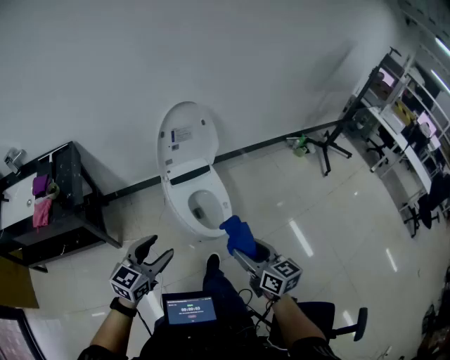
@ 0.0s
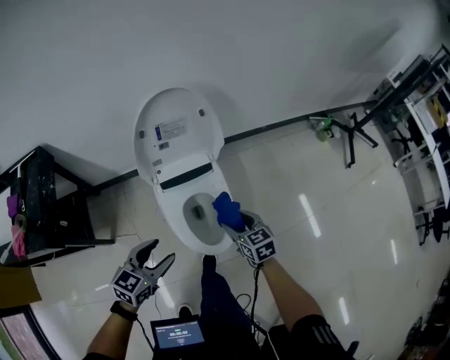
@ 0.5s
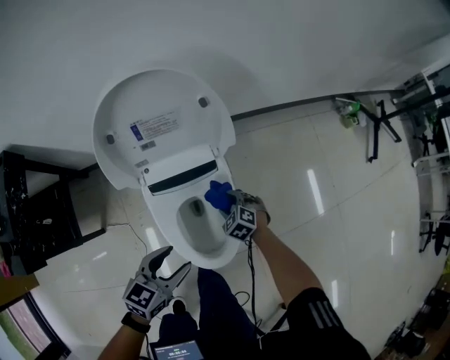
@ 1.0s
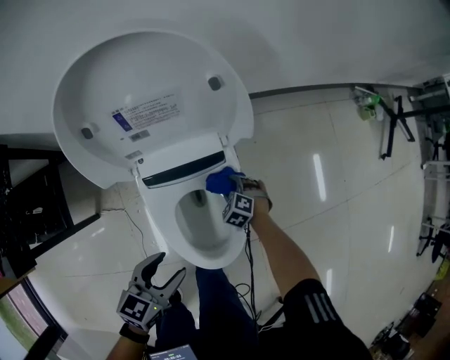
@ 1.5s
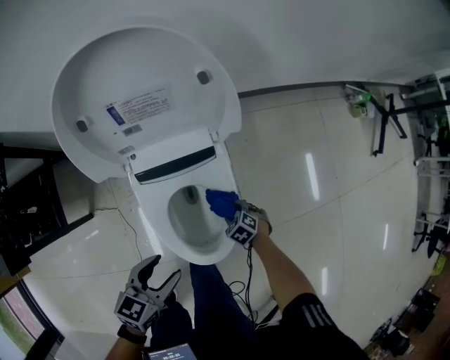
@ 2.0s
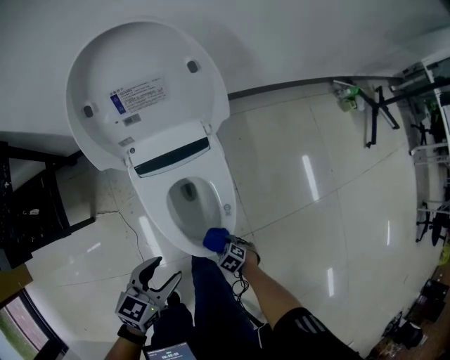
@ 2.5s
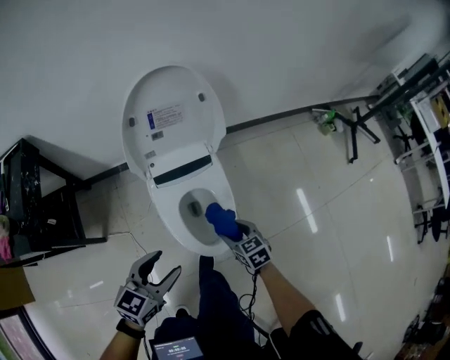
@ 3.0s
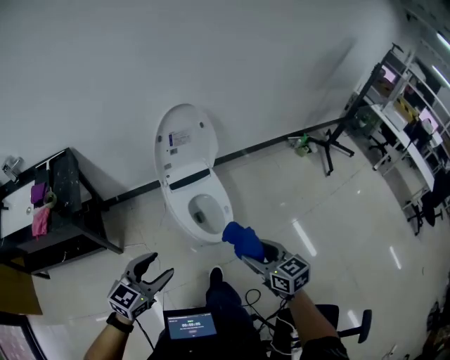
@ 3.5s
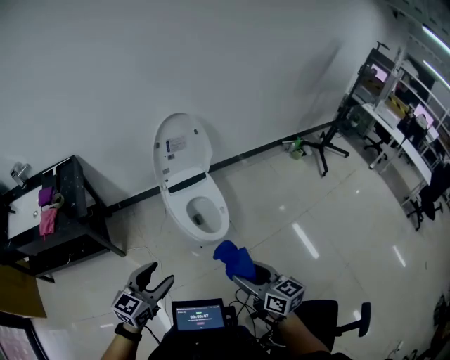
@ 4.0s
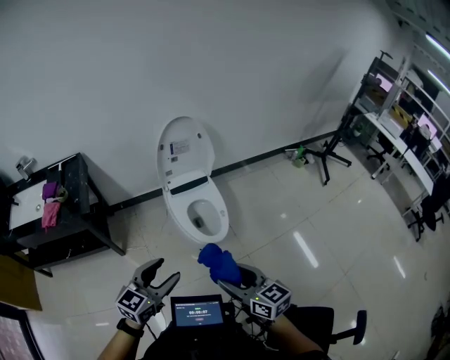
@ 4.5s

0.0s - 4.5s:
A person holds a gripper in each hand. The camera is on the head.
0.0s - 2.0s: The left gripper shifts by about 50 cm, and turns by approximately 30 degrees. Meanwhile the right gripper moves downward, roughly 60 cm, and angles its fingers downward, by approximately 60 degrees.
2.0s - 4.5s: The two grippers travel together, some 50 cm. The left gripper changes its angle by about 40 degrees. The right gripper is displaced upward by about 70 cm, and angles its fingers upward, by approximately 60 degrees.

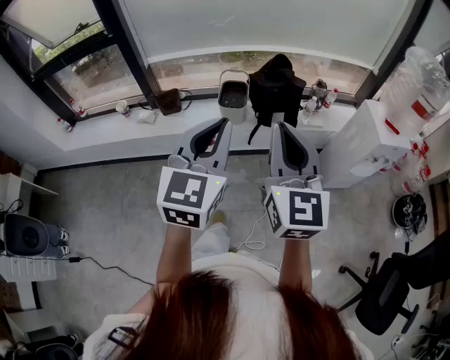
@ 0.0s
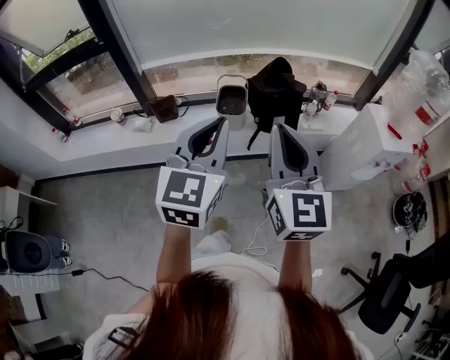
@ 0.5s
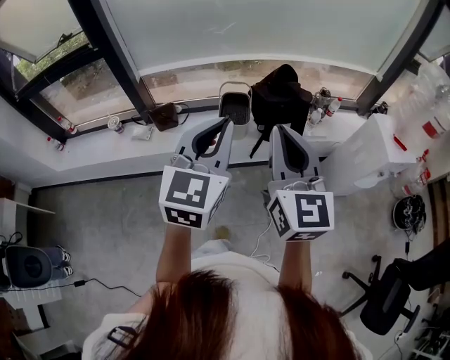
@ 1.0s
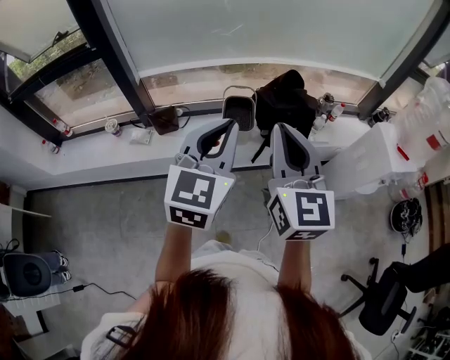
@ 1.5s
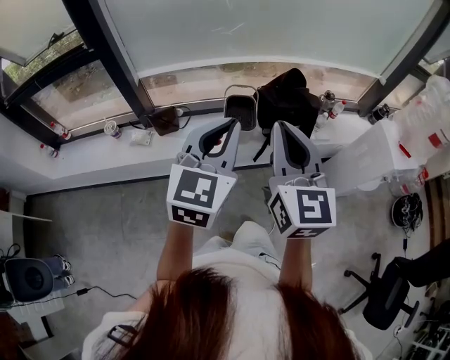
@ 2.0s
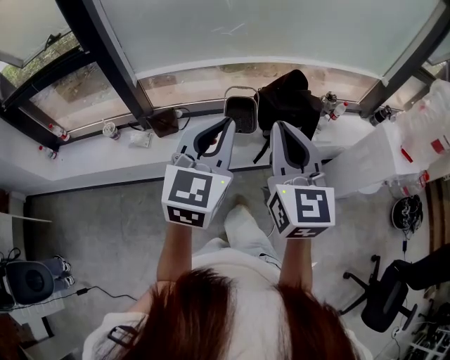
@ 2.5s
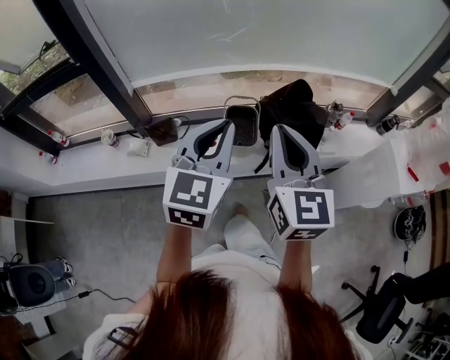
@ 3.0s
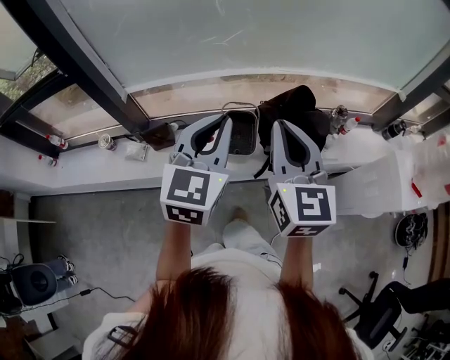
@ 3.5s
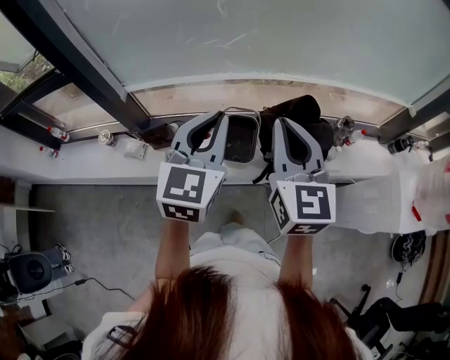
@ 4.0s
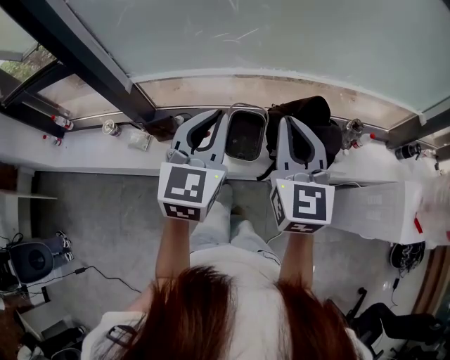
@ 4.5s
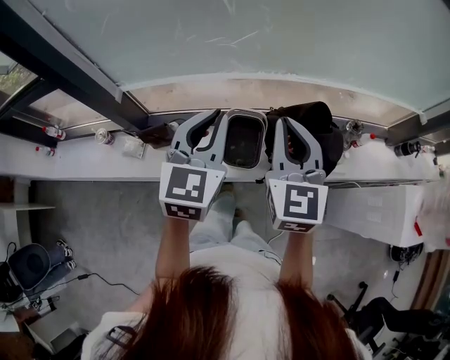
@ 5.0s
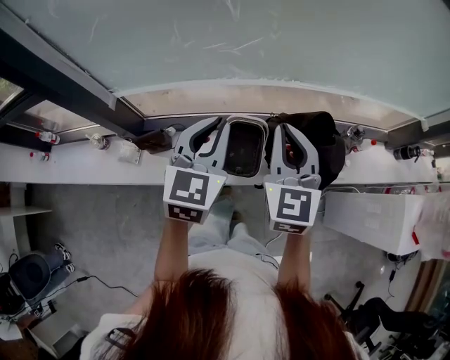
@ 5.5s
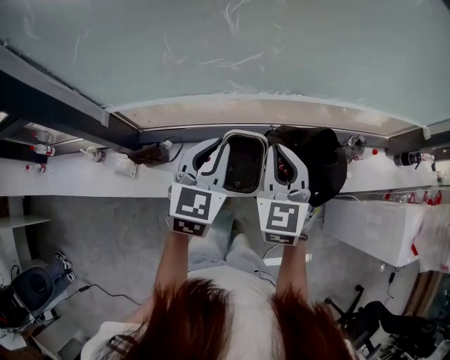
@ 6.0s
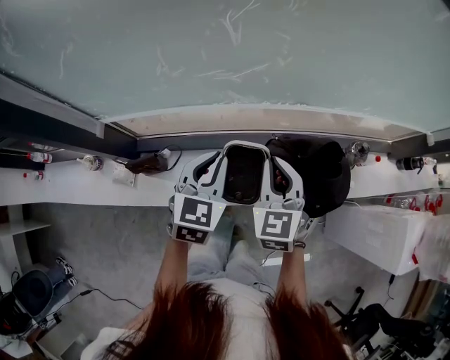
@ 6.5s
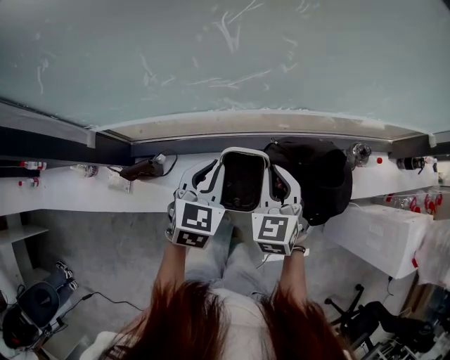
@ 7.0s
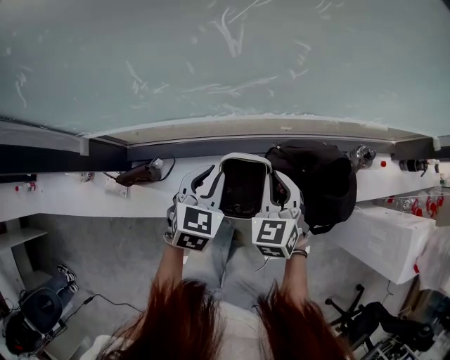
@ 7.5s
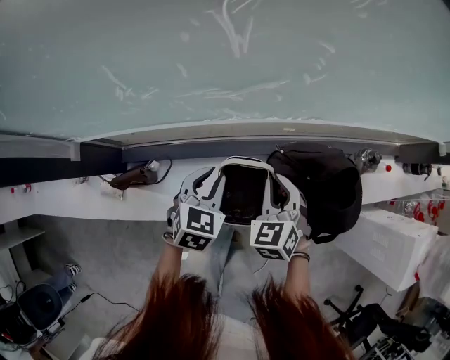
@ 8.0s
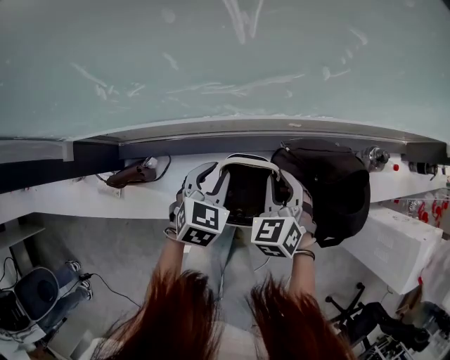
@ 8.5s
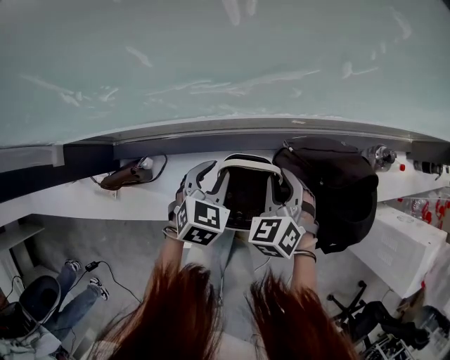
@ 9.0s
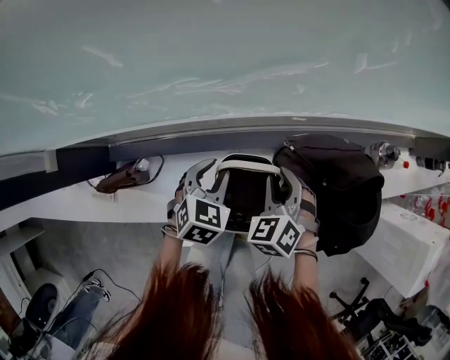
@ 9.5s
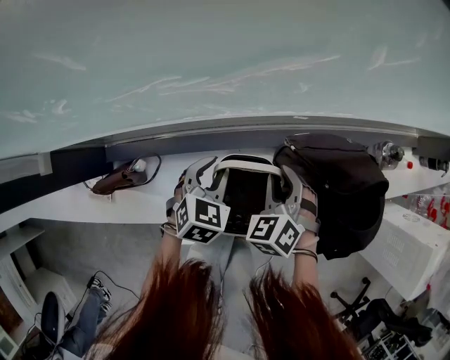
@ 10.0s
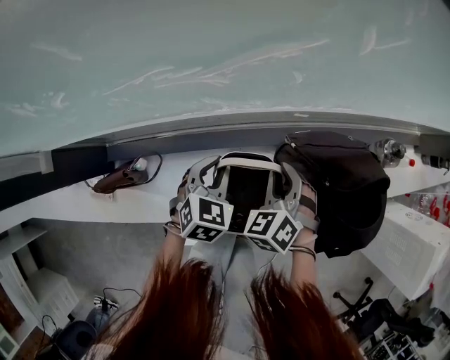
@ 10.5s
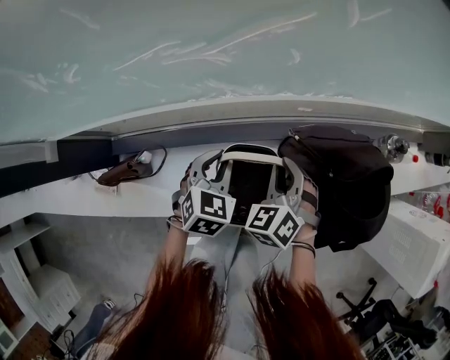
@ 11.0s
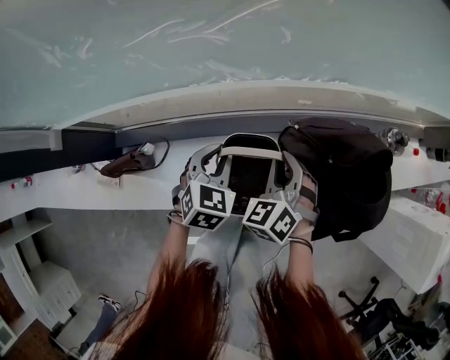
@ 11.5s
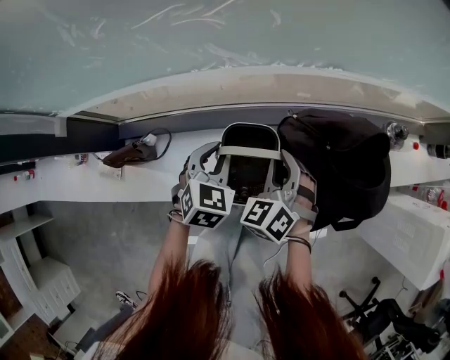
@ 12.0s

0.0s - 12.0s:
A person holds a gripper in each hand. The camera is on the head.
0.0s - 2.0s: The grippers both shift forward and to the left by approximately 25 cm.
2.0s - 4.0s: Both grippers move forward, about 25 cm.
4.0s - 6.0s: The grippers both shift forward and downward by roughly 20 cm. The right gripper turns by some 20 degrees.
6.0s - 8.0s: Both grippers travel together downward, roughly 20 cm. The right gripper swivels some 30 degrees.
8.0s - 10.0s: The two grippers go about 10 cm downward. The right gripper opens up.
10.0s - 12.0s: The two grippers go approximately 5 cm backward.

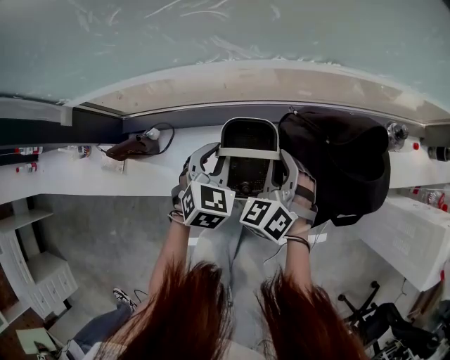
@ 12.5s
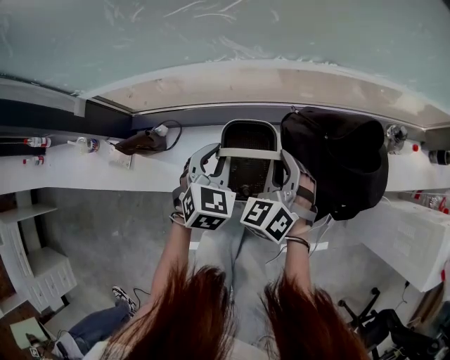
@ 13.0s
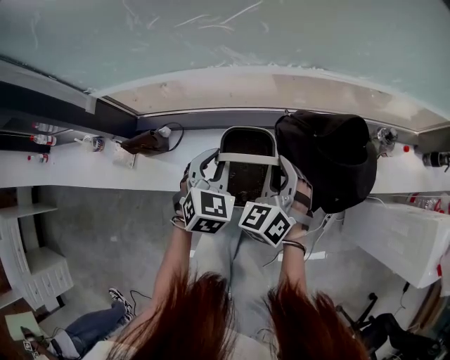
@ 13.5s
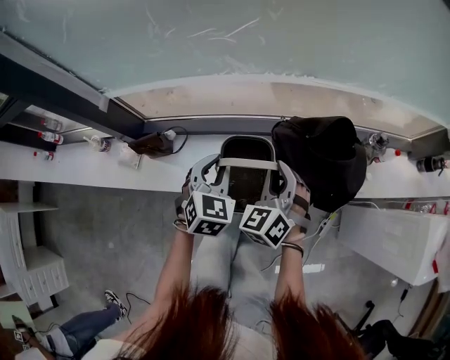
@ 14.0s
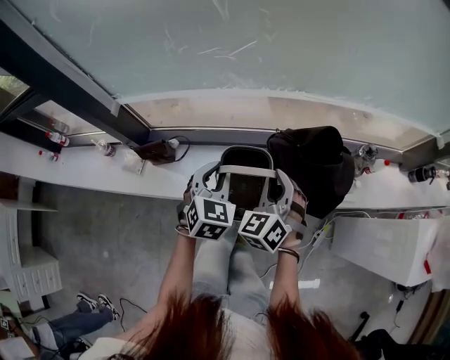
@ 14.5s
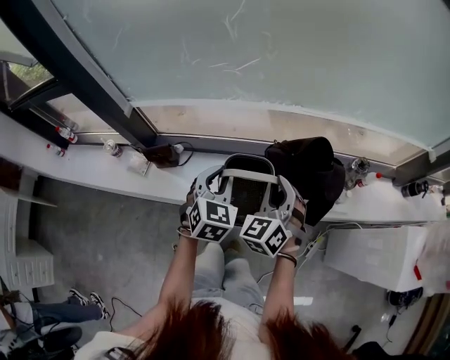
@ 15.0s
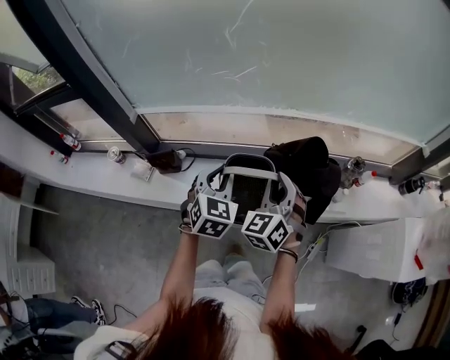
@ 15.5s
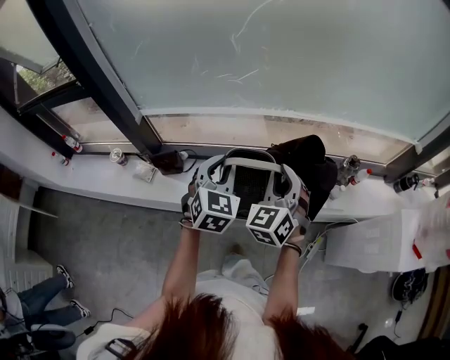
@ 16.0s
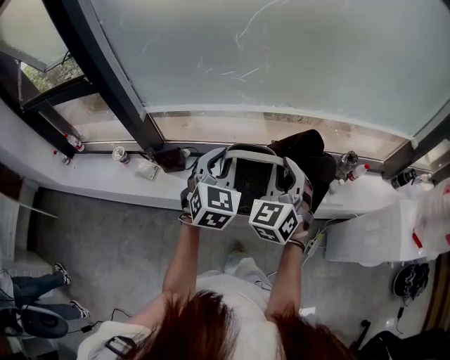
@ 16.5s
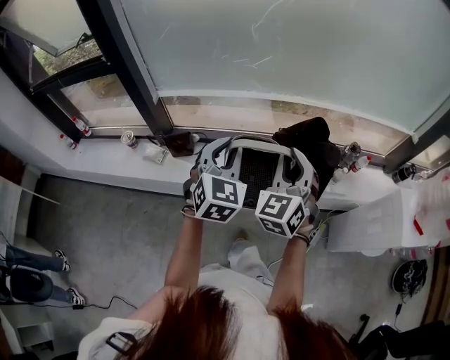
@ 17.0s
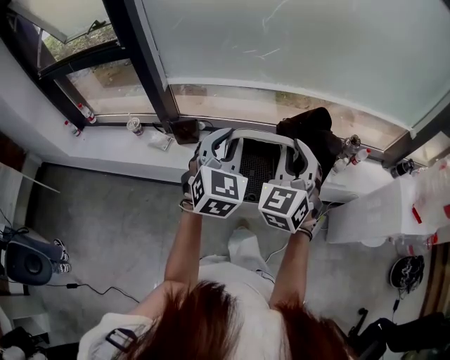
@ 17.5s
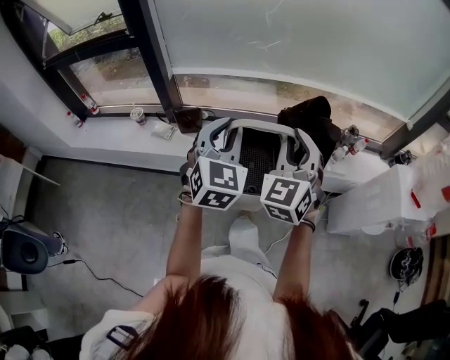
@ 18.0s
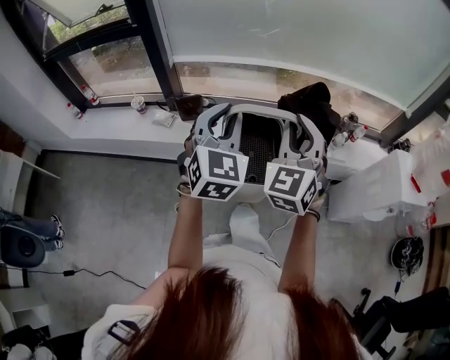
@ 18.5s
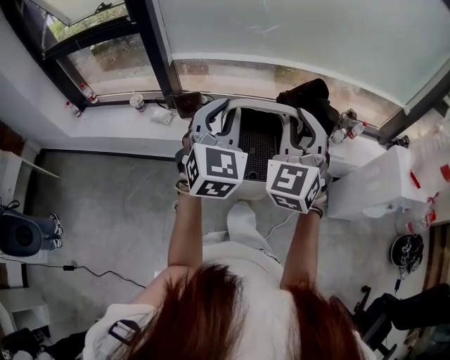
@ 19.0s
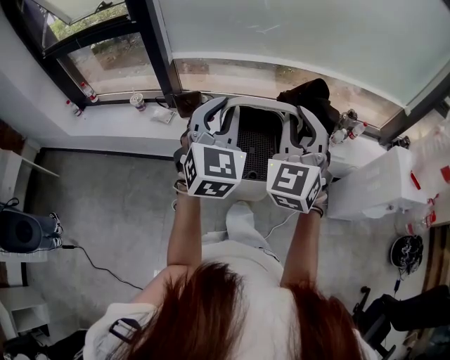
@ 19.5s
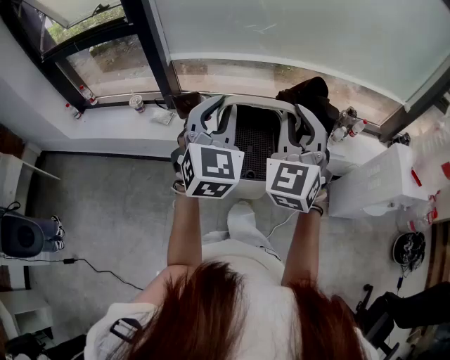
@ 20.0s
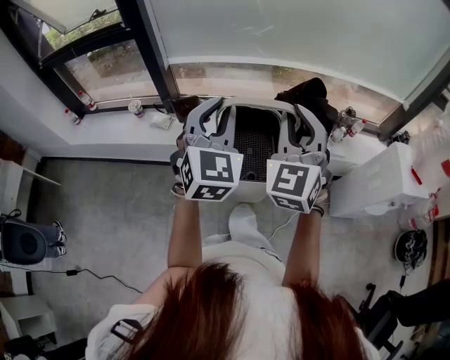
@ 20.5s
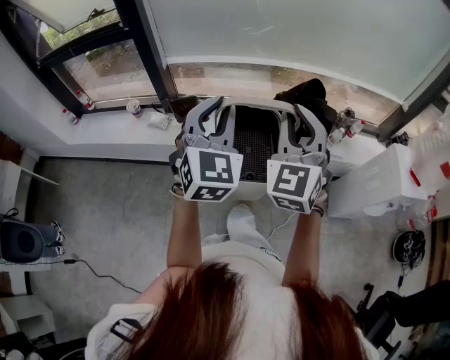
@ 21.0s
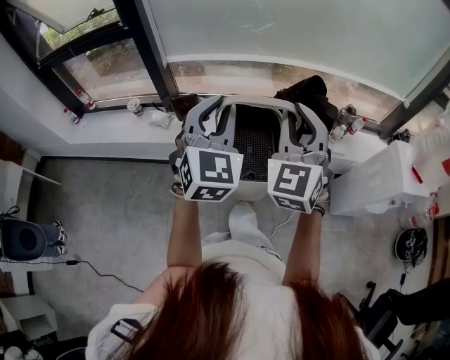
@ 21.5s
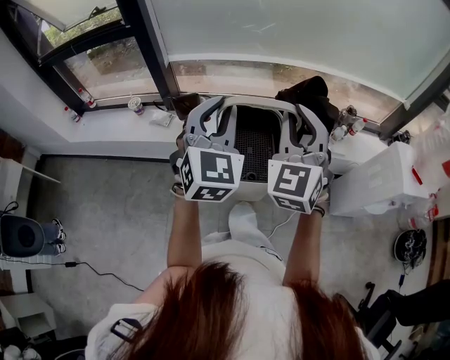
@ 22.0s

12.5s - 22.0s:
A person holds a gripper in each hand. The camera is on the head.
12.5s - 14.5s: Both grippers move upward and backward, roughly 20 cm.
14.5s - 16.5s: The two grippers go roughly 20 cm upward and backward.
16.5s - 18.0s: Both grippers travel together backward, some 20 cm.
18.0s - 20.0s: Both grippers move backward, roughly 5 cm.
20.0s - 22.0s: The grippers make only small movements.

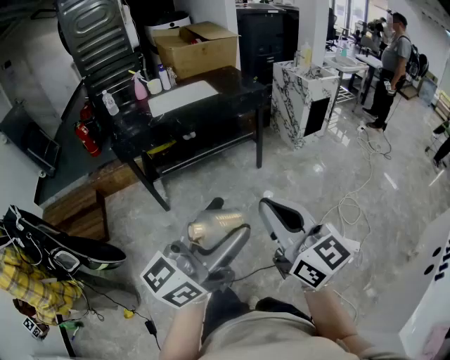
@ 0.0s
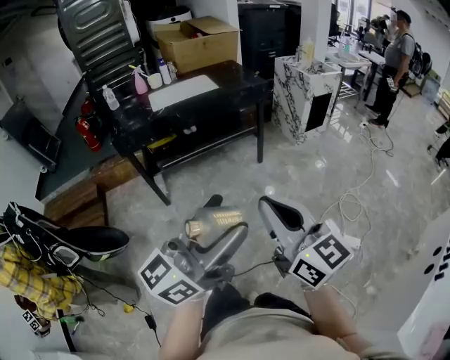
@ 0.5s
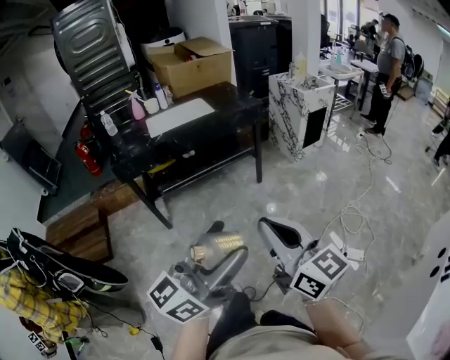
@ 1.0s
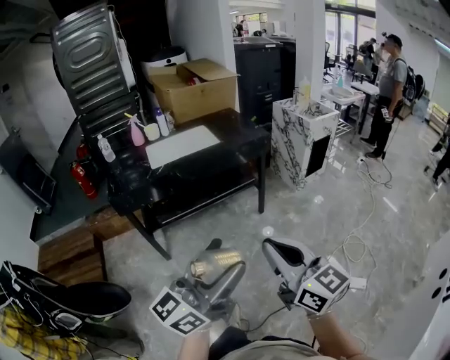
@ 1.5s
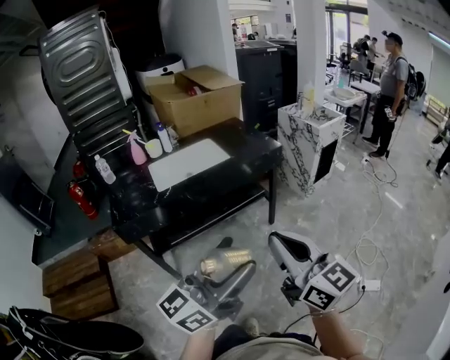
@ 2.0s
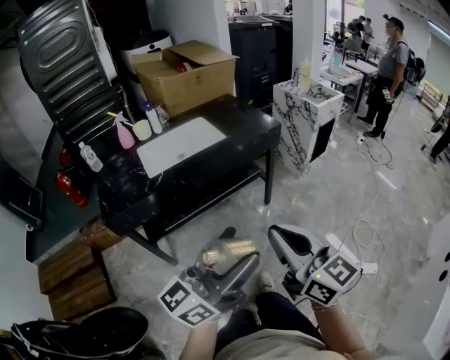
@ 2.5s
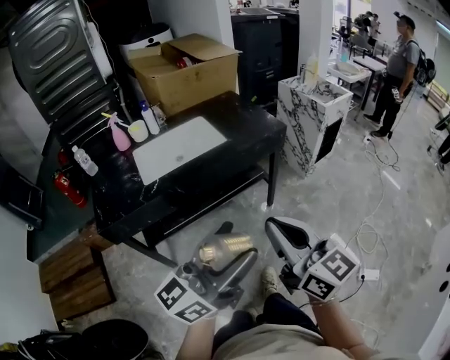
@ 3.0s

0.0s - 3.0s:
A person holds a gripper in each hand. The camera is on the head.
0.0s - 1.5s: Both grippers move forward, approximately 15 cm.
1.5s - 3.0s: The two grippers go some 25 cm forward.
